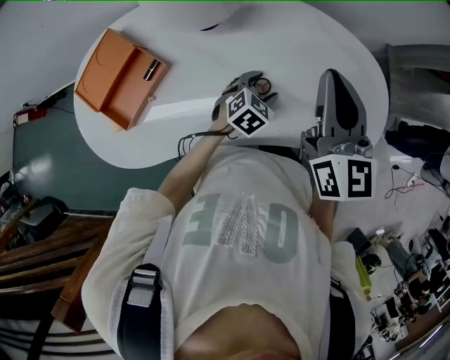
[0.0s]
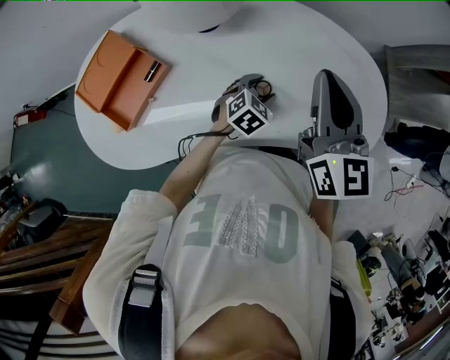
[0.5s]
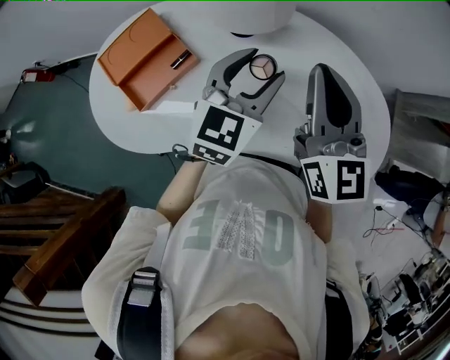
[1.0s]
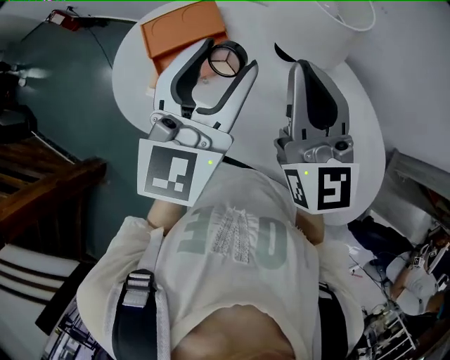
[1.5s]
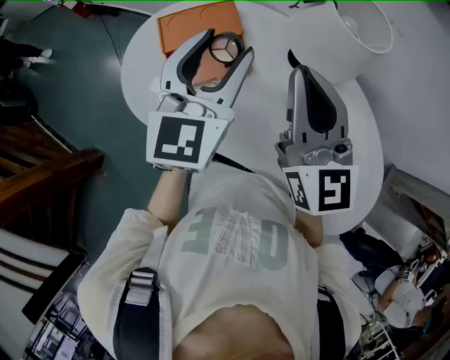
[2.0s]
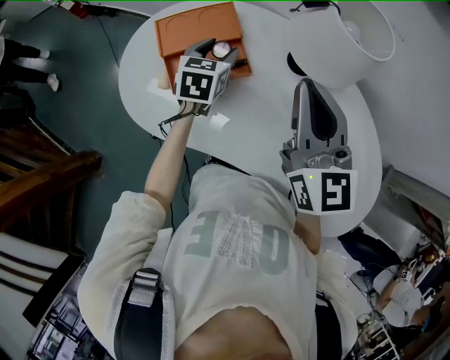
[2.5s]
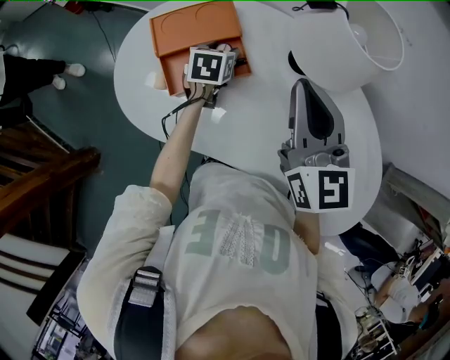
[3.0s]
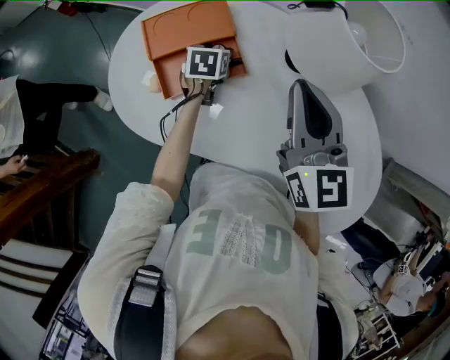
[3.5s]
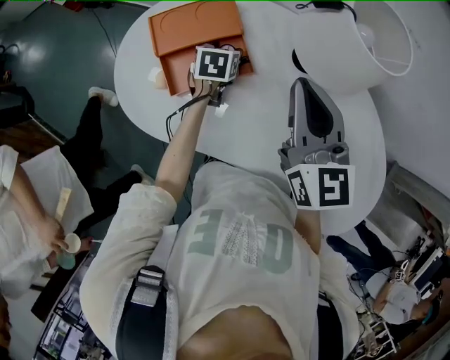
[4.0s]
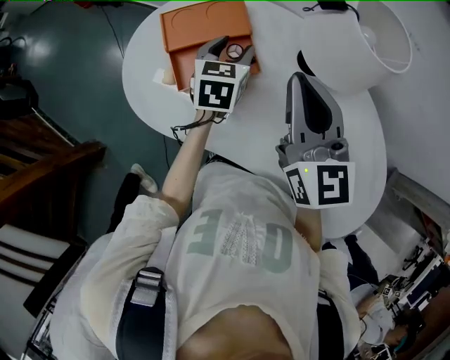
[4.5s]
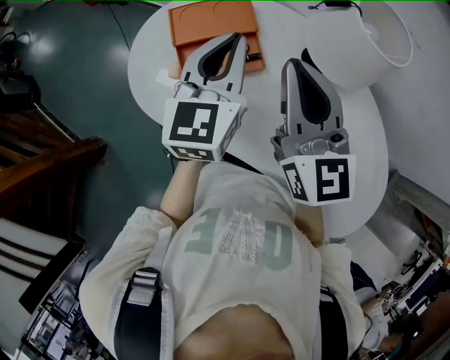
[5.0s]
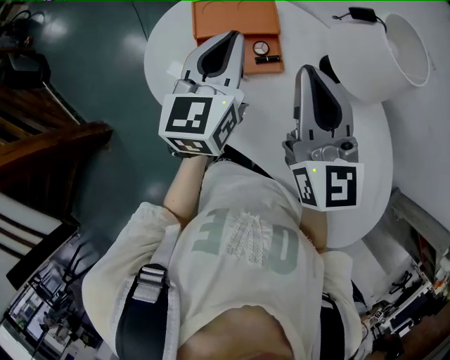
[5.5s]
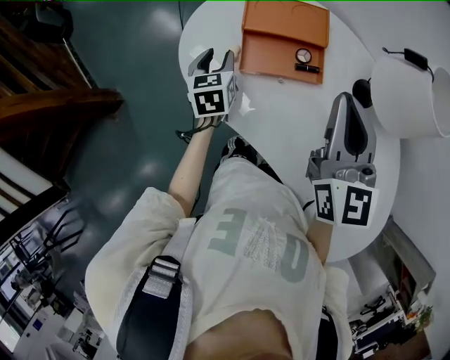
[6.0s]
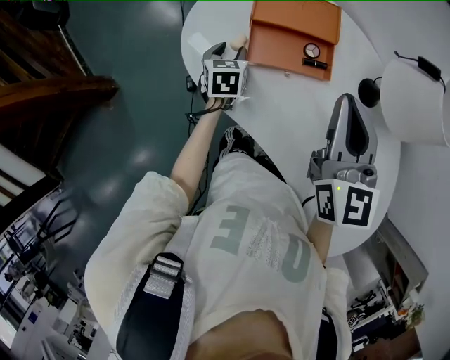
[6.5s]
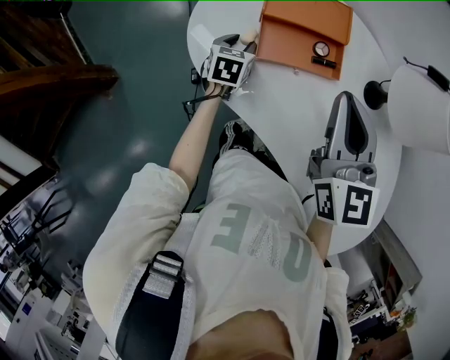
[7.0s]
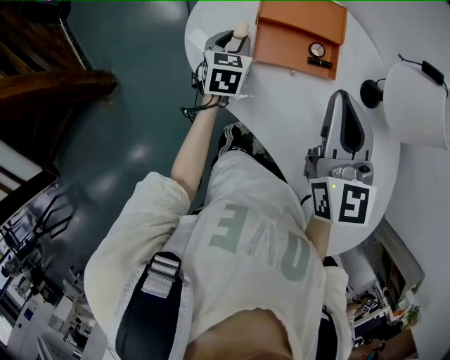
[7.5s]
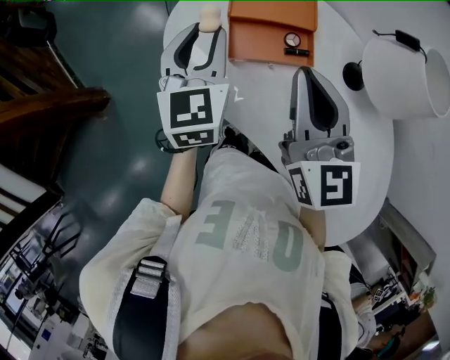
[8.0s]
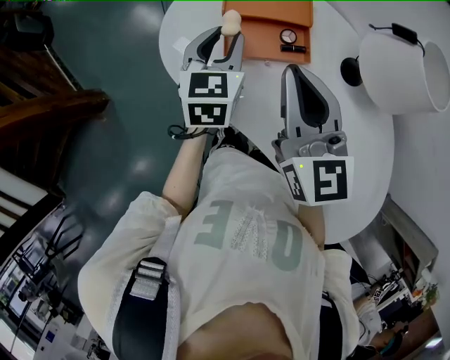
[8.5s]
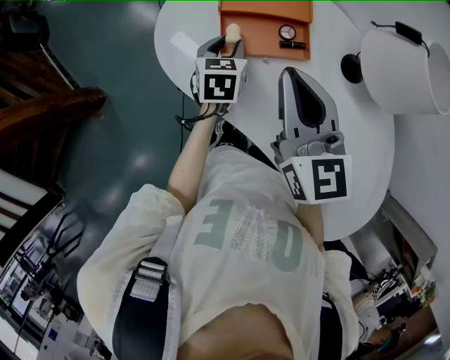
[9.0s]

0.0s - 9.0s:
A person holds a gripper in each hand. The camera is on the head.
0.0s - 2.0s: The right gripper changes place by about 25 cm, and rotates some 40 degrees. The left gripper travels upward by some 30 cm, and angles its fingers upward, by roughly 40 degrees.
2.0s - 4.5s: The left gripper heads downward and forward, covering roughly 20 cm, and changes its angle by some 30 degrees. The right gripper heads downward, covering approximately 5 cm.
4.5s - 7.0s: The left gripper is displaced to the left and downward by about 25 cm, swivels about 20 degrees, and closes, then opens again; the right gripper heads to the left, covering some 10 cm.
7.0s - 9.0s: The left gripper moves to the right, approximately 5 cm, and goes upward and returns, about 25 cm each way.

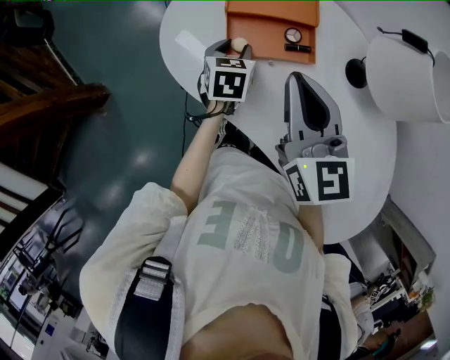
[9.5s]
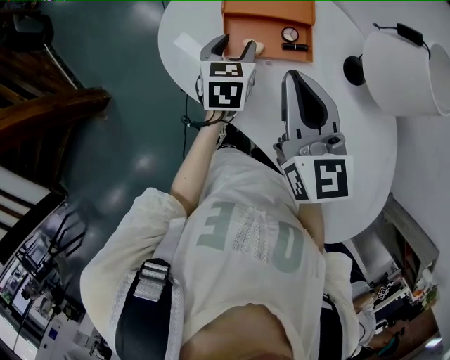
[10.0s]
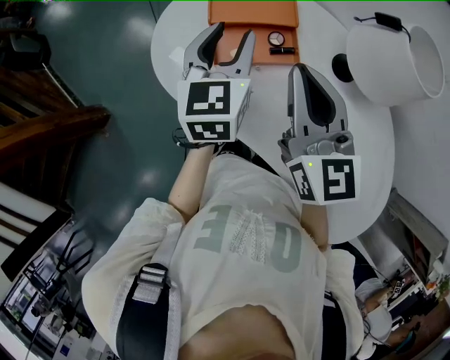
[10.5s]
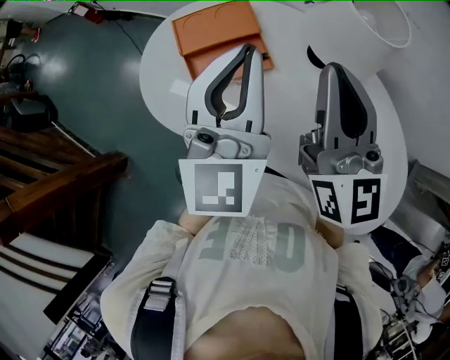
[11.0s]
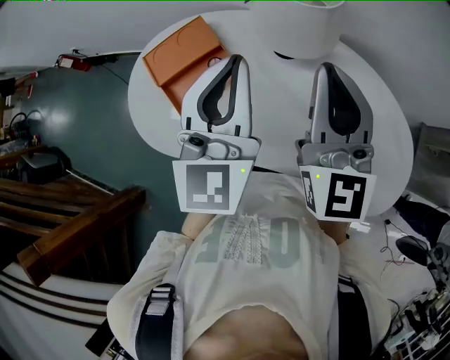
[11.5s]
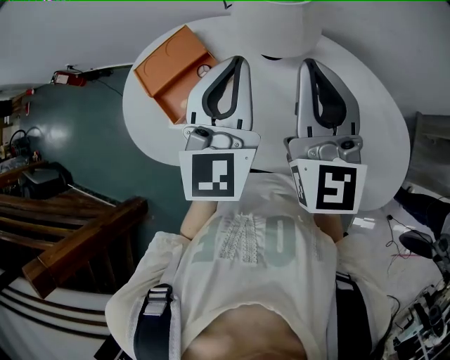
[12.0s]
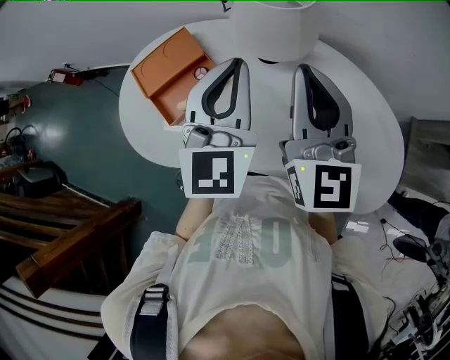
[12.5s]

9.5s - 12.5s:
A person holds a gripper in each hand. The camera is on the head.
9.5s - 11.0s: The left gripper travels upward by approximately 30 cm, tilts its fingers approximately 50 degrees upward, and closes its fingers; the right gripper moves upward and to the right, approximately 15 cm, and changes its angle by about 30 degrees.
11.0s - 12.5s: Both grippers move to the right, some 10 cm. The right gripper rotates about 20 degrees.

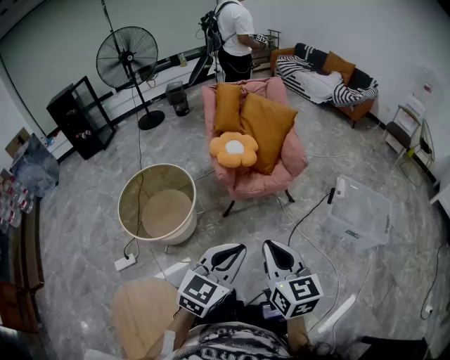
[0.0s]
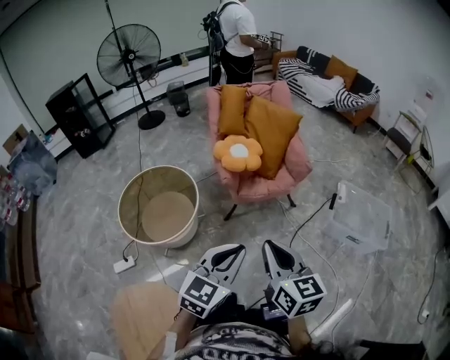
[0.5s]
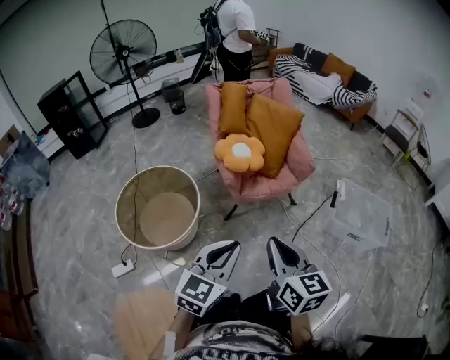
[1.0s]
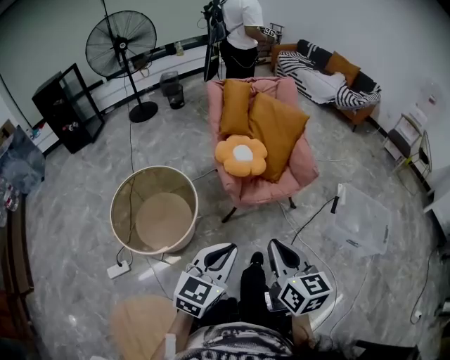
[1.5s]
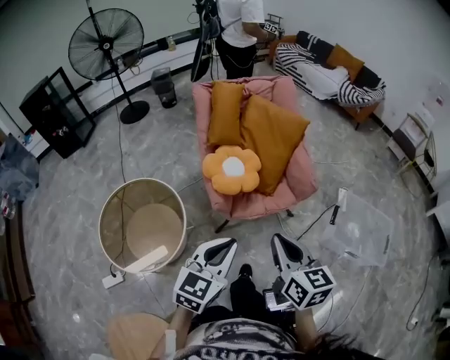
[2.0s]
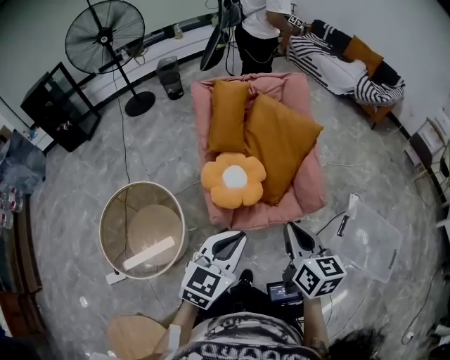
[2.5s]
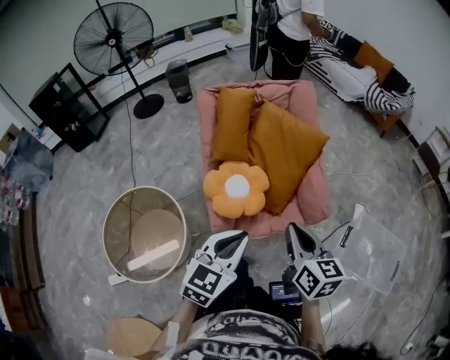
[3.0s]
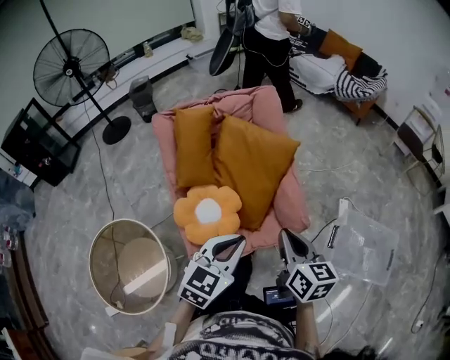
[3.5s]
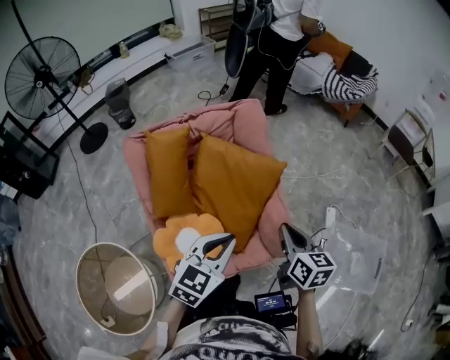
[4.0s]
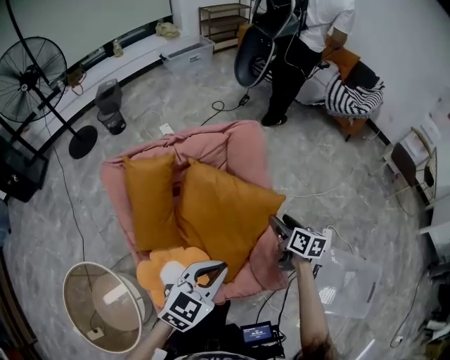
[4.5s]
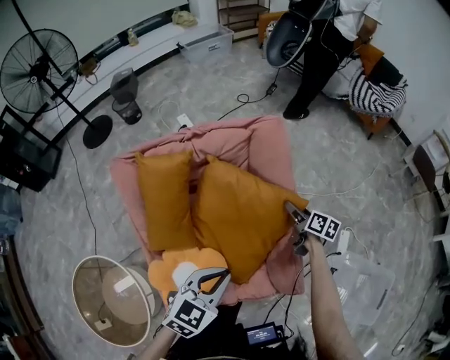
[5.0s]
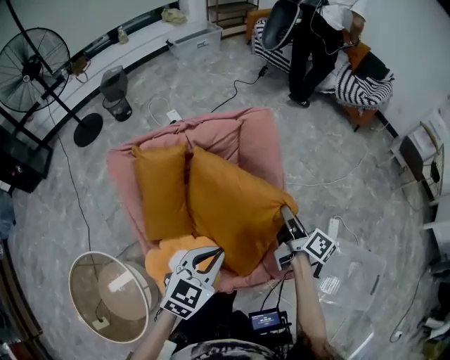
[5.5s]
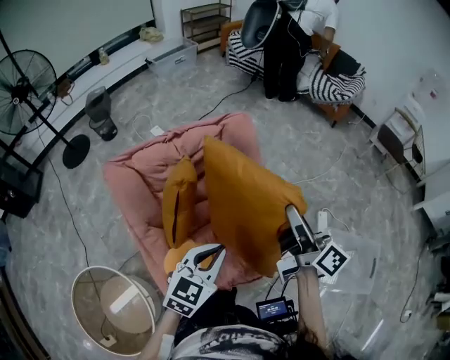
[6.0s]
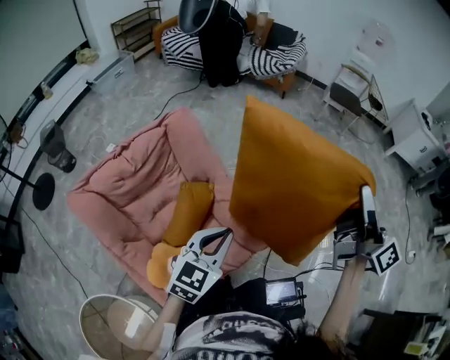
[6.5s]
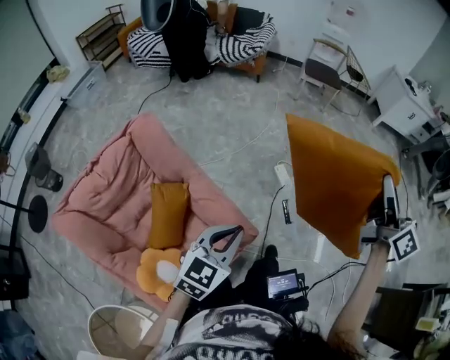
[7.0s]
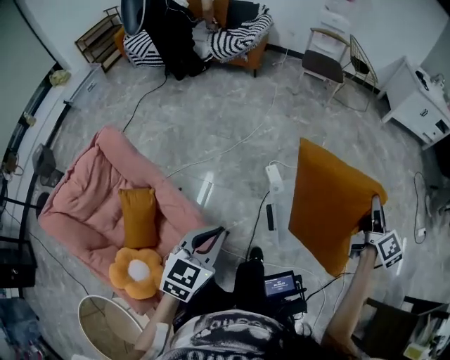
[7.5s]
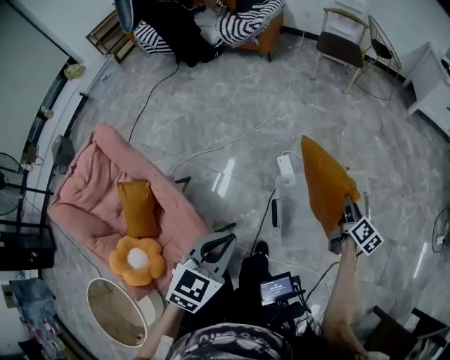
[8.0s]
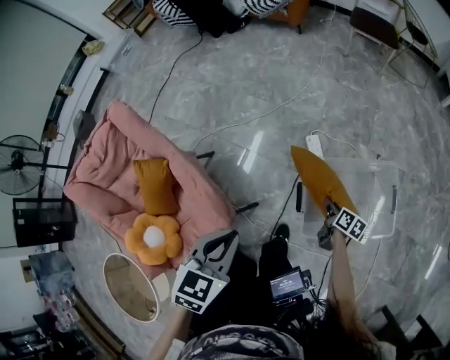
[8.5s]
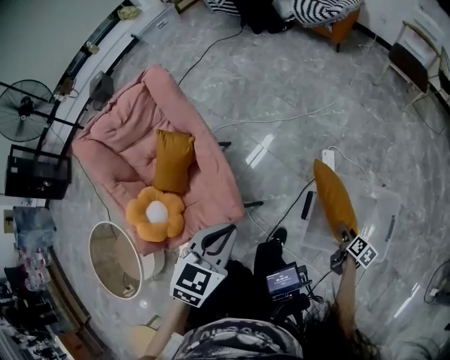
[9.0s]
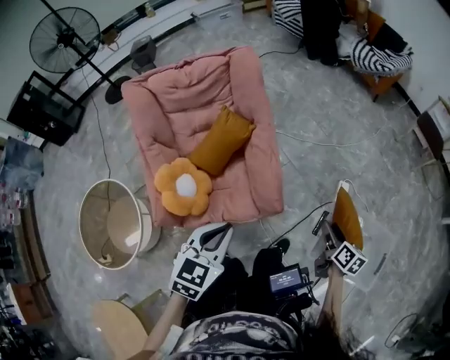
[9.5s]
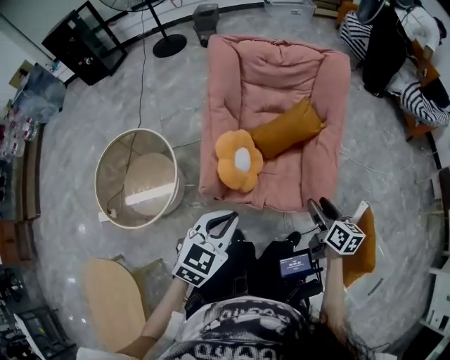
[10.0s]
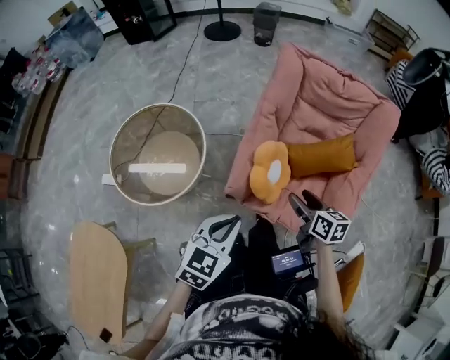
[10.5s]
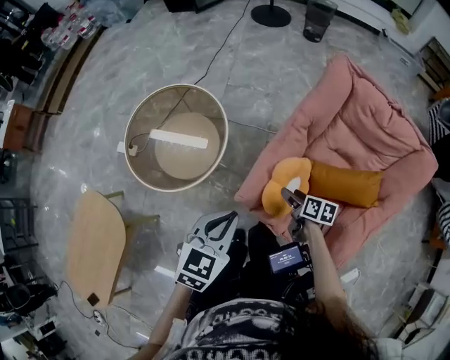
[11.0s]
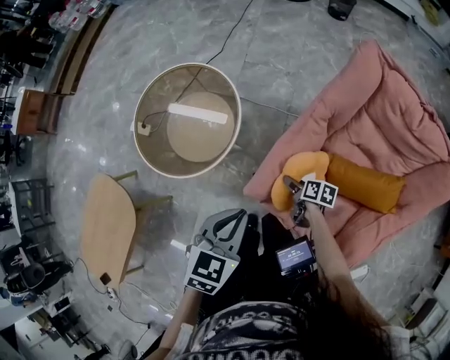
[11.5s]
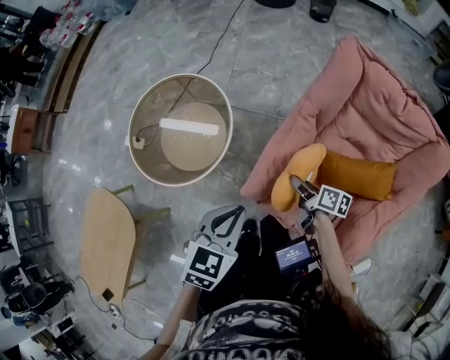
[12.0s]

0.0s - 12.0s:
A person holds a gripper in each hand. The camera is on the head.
0.0s - 2.0s: Both grippers move forward, some 30 cm.
2.0s - 4.0s: The pair of grippers is taken forward, approximately 50 cm.
4.0s - 6.0s: The right gripper shifts roughly 10 cm forward, moves approximately 20 cm downward and comes back, rotates roughly 40 degrees, and opens, then closes again; the left gripper goes roughly 5 cm forward, and moves about 10 cm downward and comes back.
6.0s - 8.0s: The pair of grippers is taken about 60 cm. The right gripper changes its angle by about 50 degrees; the left gripper rotates about 20 degrees.
8.0s - 10.0s: The pair of grippers is taken roughly 60 cm. The left gripper rotates about 50 degrees, while the right gripper swivels some 80 degrees, and opens its fingers.
10.0s - 12.0s: The left gripper shifts by approximately 20 cm, and rotates about 40 degrees. Meanwhile the right gripper ends up about 35 cm from where it was, and changes its angle by about 50 degrees.

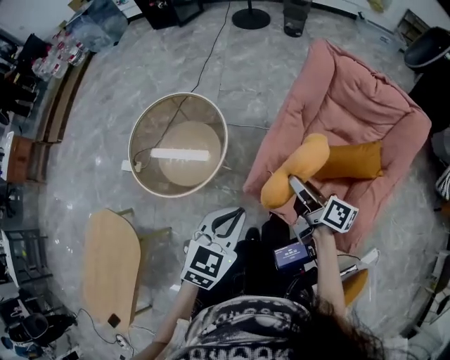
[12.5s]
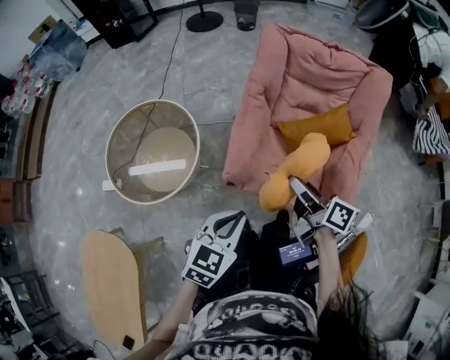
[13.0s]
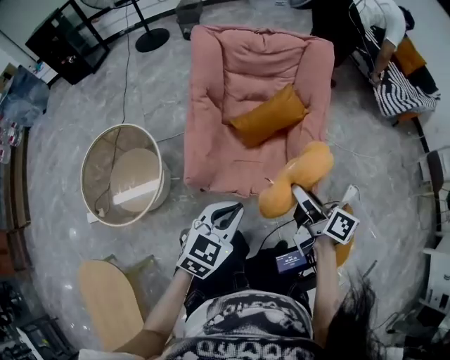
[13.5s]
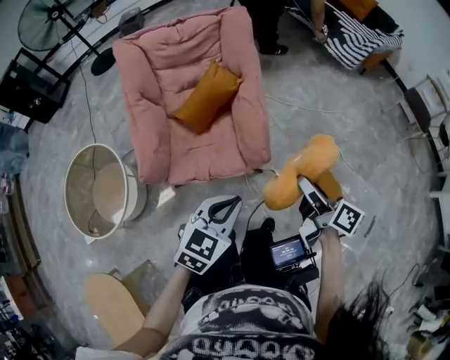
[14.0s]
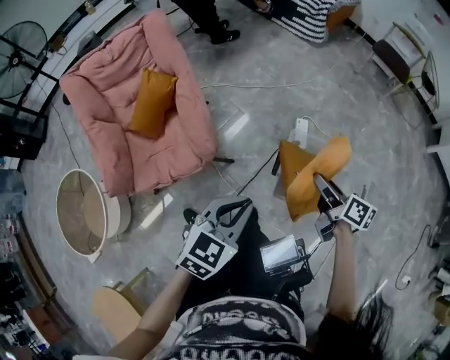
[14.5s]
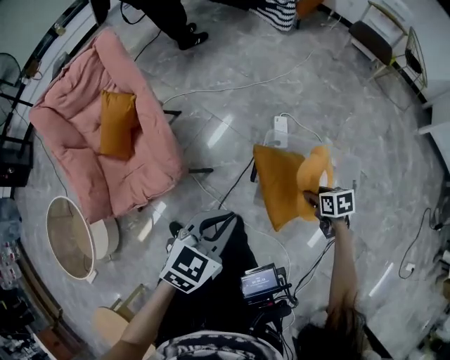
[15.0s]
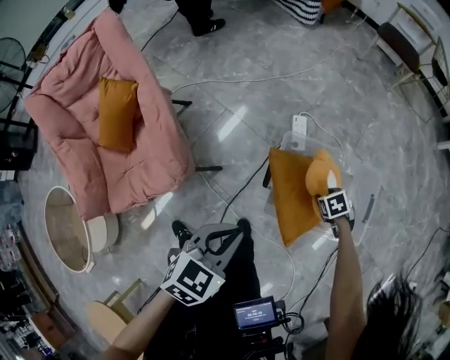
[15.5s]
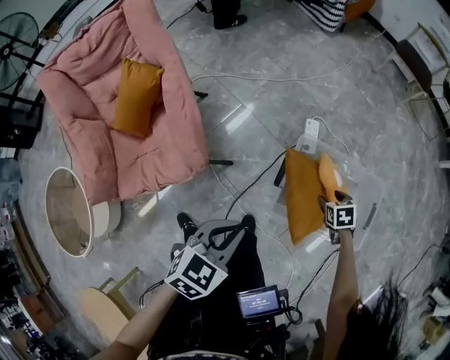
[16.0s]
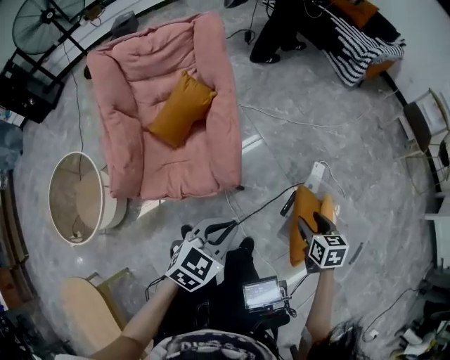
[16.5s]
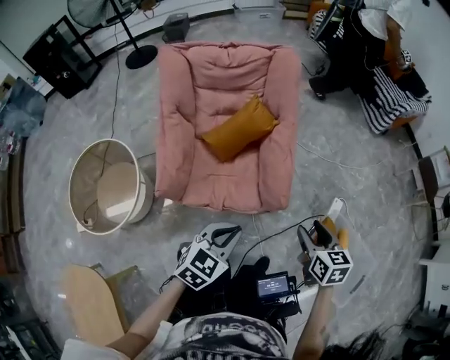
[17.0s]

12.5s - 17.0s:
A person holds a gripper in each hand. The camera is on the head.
12.5s - 14.5s: Both grippers are carried roughly 70 cm. The left gripper rotates roughly 60 degrees. Meanwhile the right gripper swivels some 60 degrees.
14.5s - 17.0s: The right gripper goes downward and returns, some 30 cm each way, and rolls counterclockwise, seen from behind, by about 50 degrees. The left gripper travels downward and back again, about 10 cm each way, and turns by some 20 degrees.
